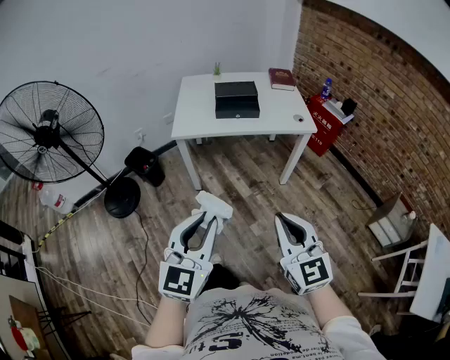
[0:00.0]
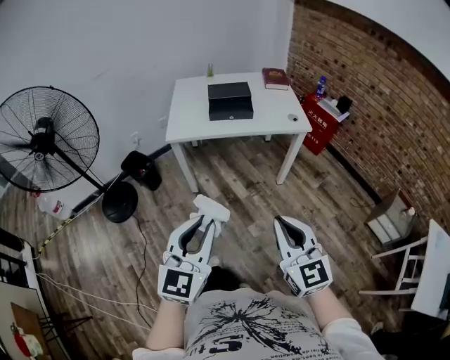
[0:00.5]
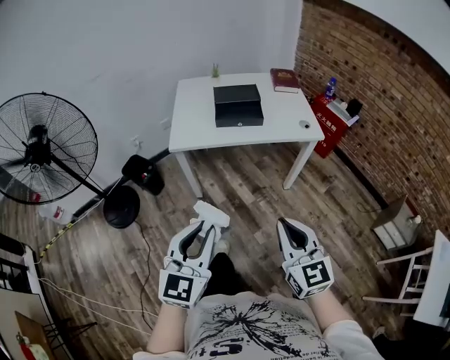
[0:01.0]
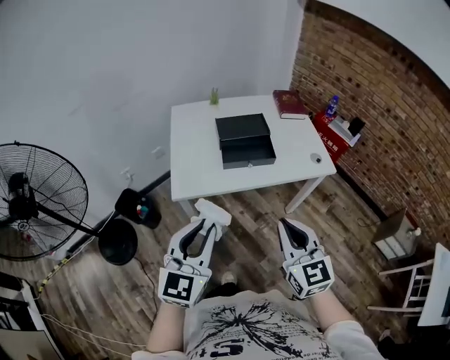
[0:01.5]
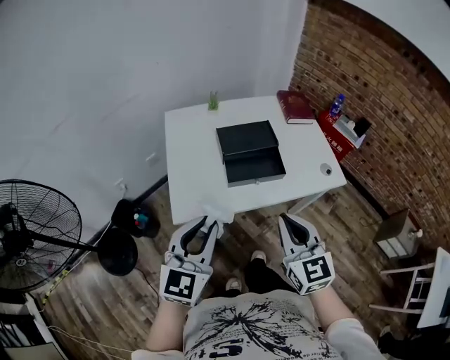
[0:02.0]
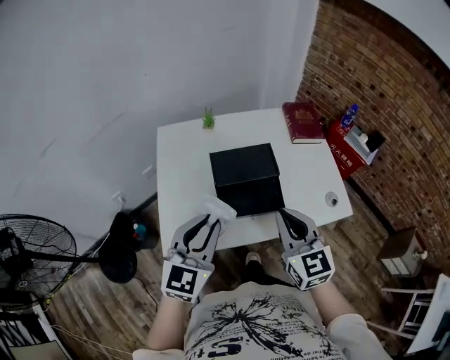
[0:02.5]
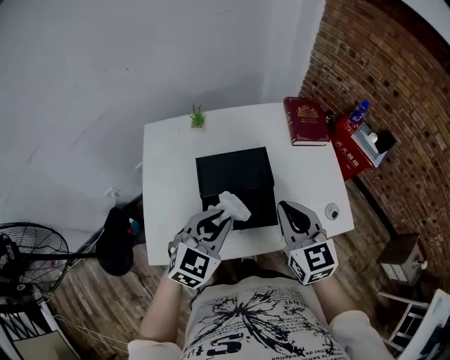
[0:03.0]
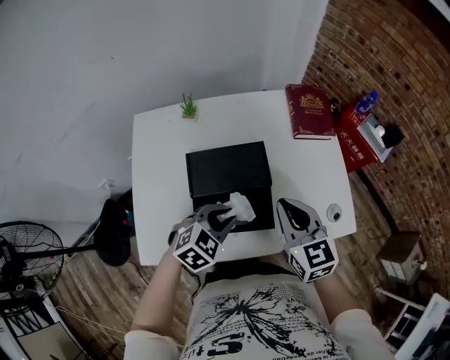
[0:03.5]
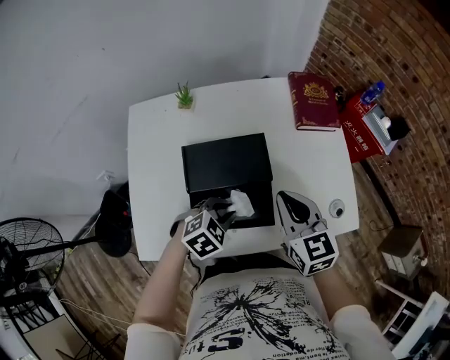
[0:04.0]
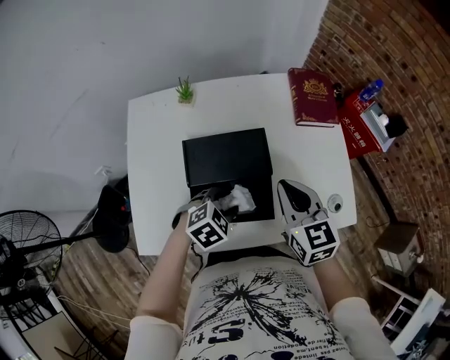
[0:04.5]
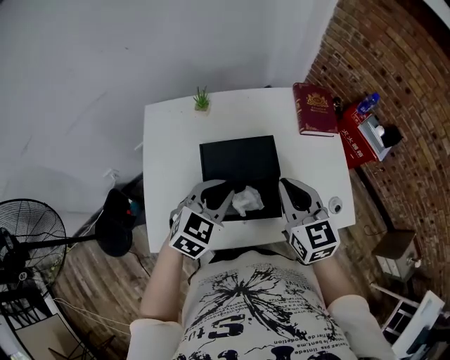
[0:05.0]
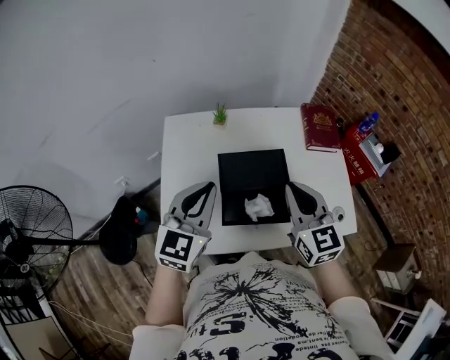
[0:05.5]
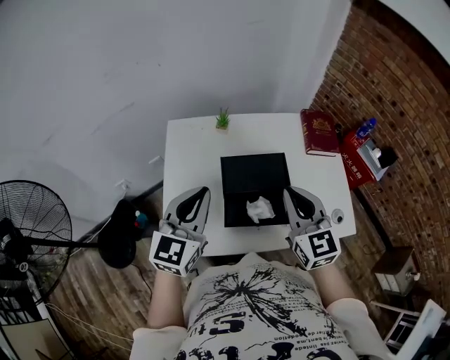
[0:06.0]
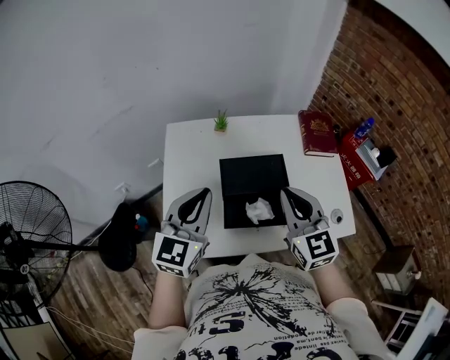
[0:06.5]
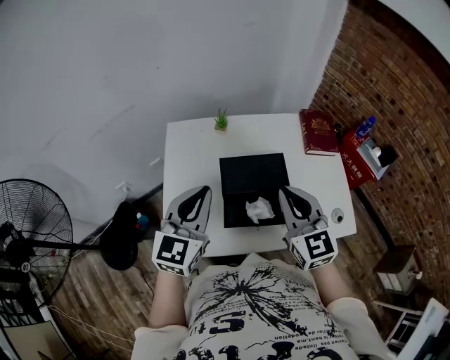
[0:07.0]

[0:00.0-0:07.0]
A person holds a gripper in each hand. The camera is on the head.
0:00.0 to 0:02.0: Both grippers are carried forward, some 50 cm.
0:02.0 to 0:03.5: The left gripper travels forward, downward and to the right by about 40 cm, and tips its fingers downward by roughly 40 degrees. The right gripper goes approximately 35 cm forward.
0:03.5 to 0:05.0: The left gripper heads upward and to the left, covering some 10 cm, and opens and closes again. The right gripper shifts by about 5 cm.
0:05.0 to 0:07.0: The left gripper moves upward and to the left, roughly 20 cm, and changes its angle by approximately 30 degrees. The right gripper is displaced upward and to the left by approximately 10 cm.

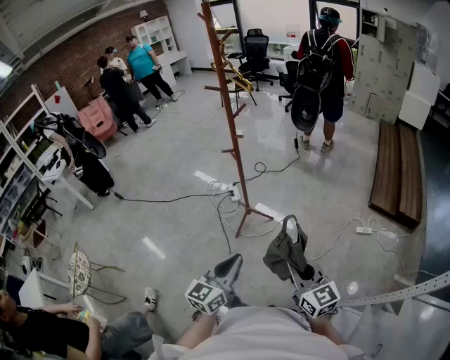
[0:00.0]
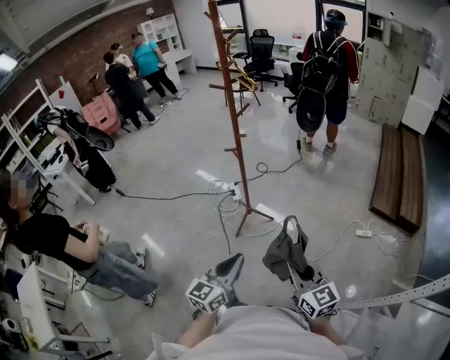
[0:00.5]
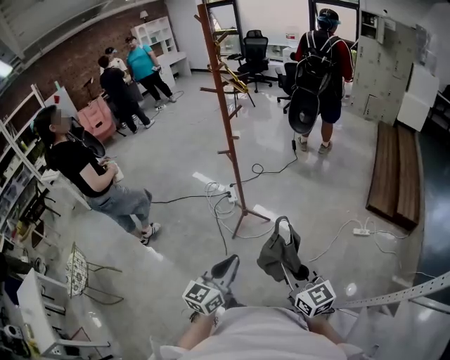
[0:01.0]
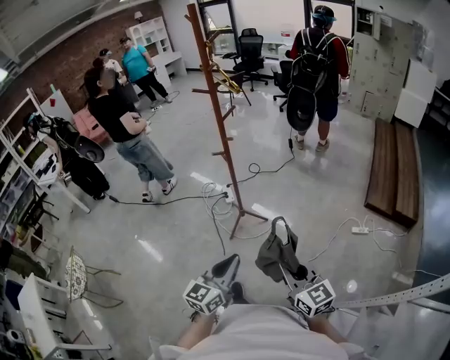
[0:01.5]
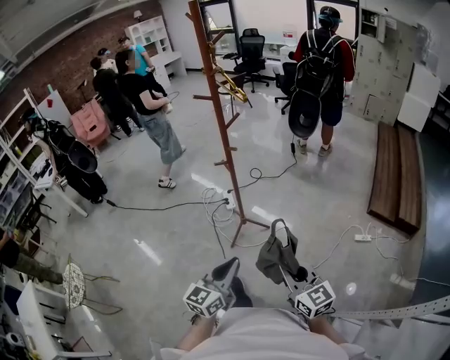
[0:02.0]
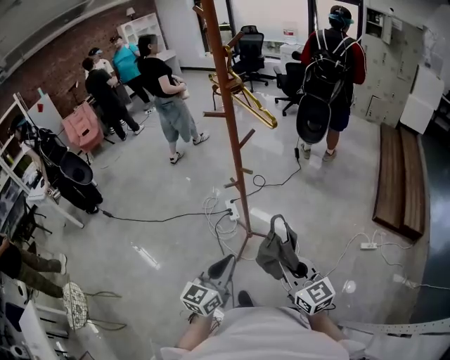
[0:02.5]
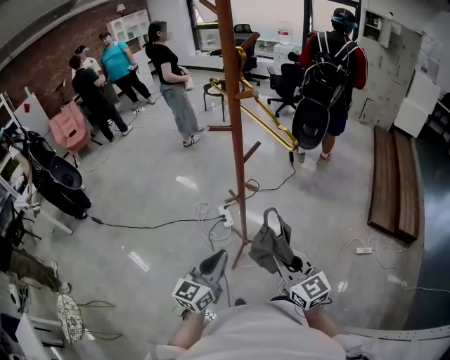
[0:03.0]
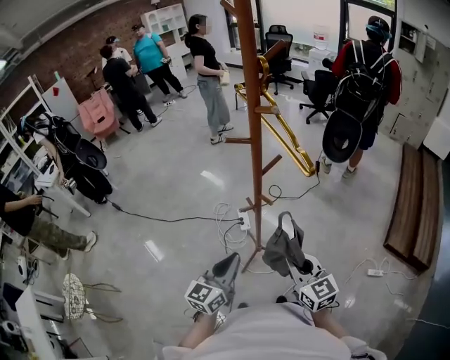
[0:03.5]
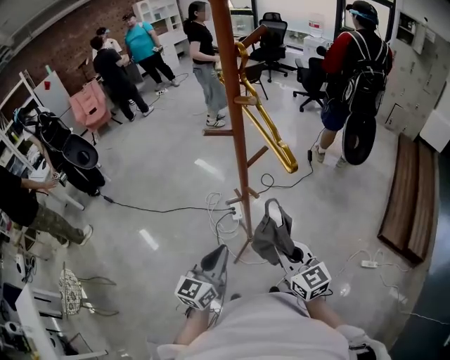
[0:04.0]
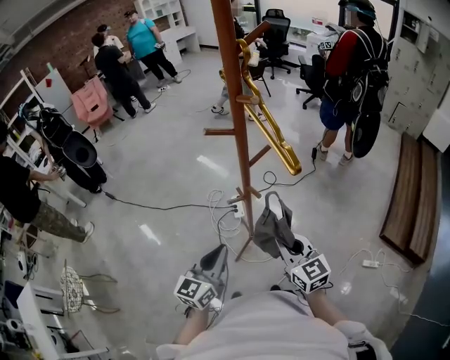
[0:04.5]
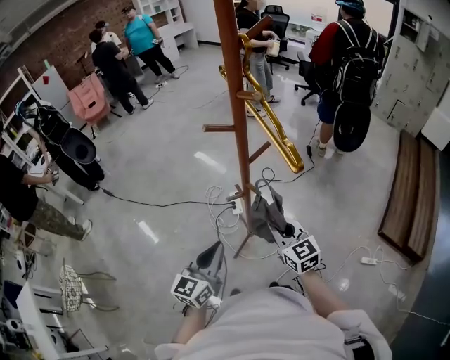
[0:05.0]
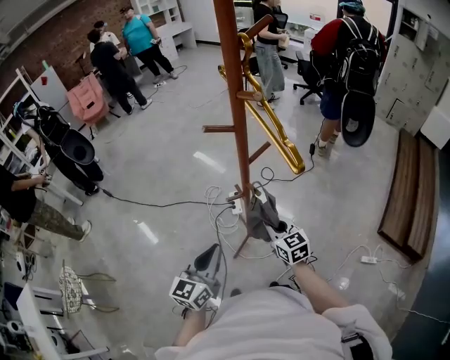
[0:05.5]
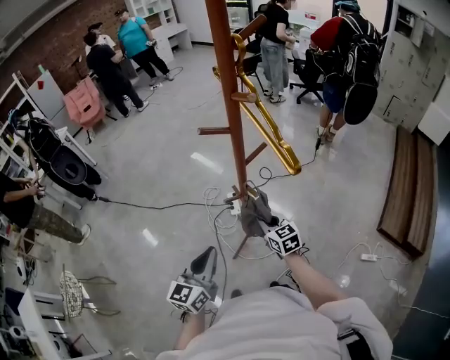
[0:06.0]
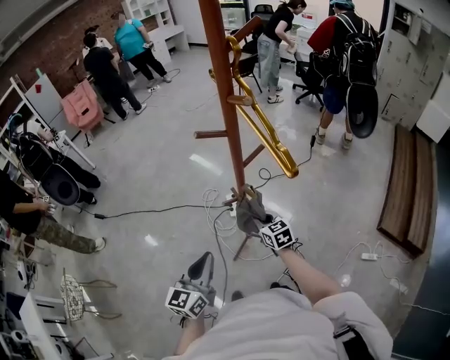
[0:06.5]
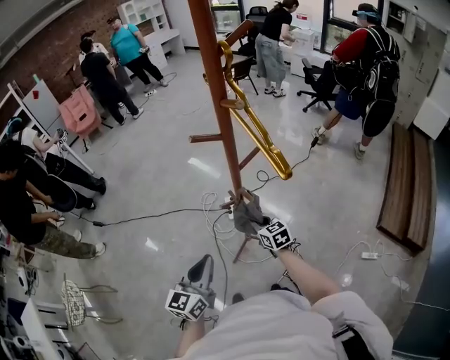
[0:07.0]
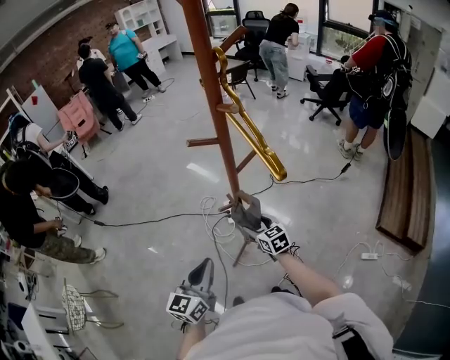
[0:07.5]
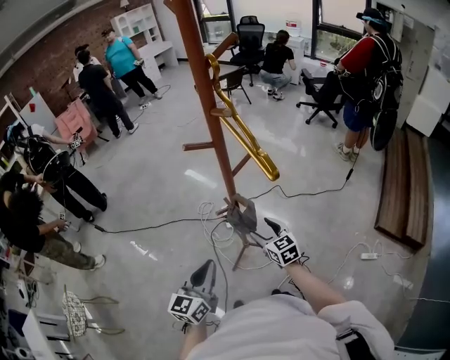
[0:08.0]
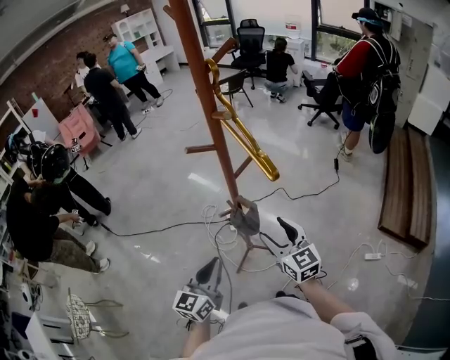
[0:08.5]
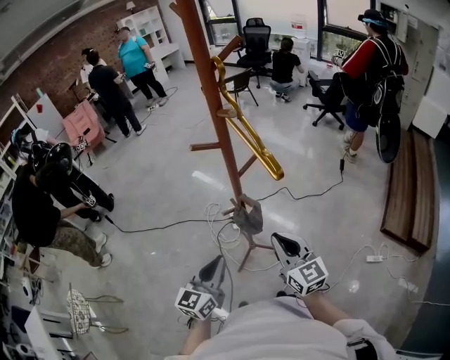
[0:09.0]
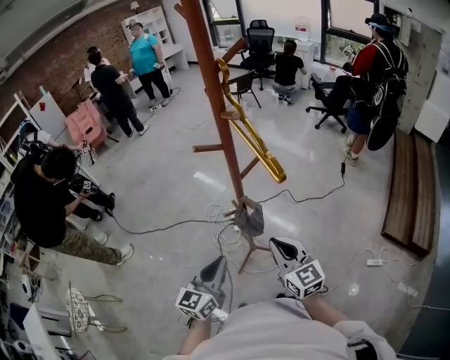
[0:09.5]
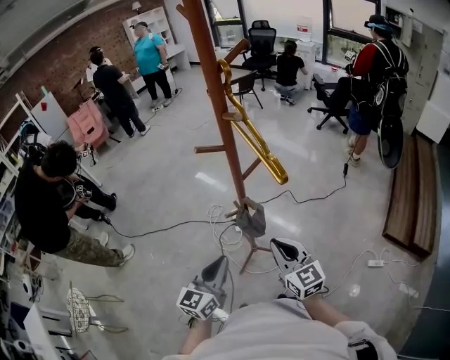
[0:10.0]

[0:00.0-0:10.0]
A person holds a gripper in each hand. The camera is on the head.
0:00.0 to 0:02.0: Both grippers travel together forward, some 10 cm.
0:02.0 to 0:04.0: The grippers both shift forward by some 35 cm.
0:04.0 to 0:06.0: The right gripper is displaced forward and downward by some 20 cm.
0:06.0 to 0:08.0: The right gripper opens up.
0:08.0 to 0:10.0: The right gripper shifts approximately 15 cm upward and backward, and closes.

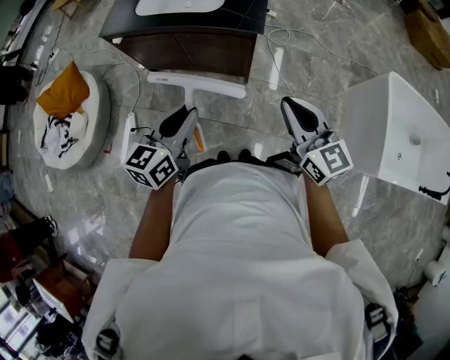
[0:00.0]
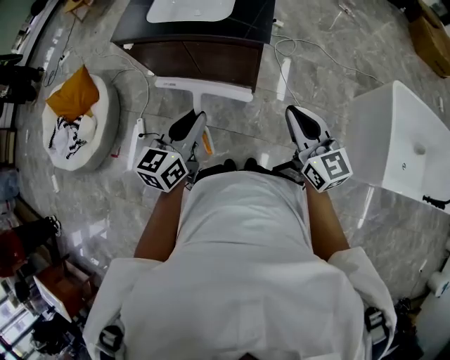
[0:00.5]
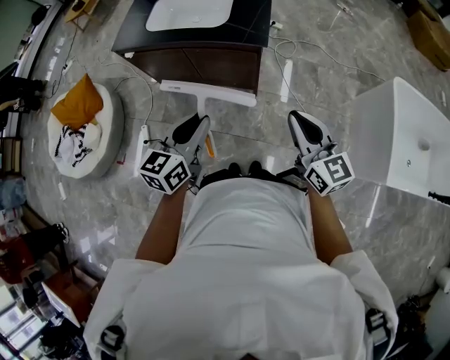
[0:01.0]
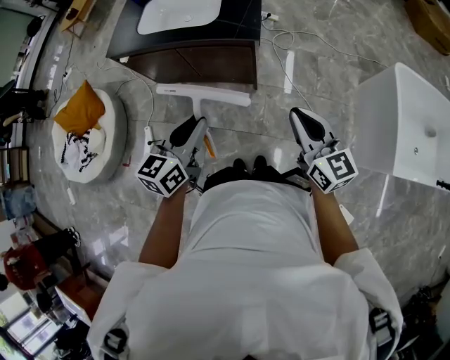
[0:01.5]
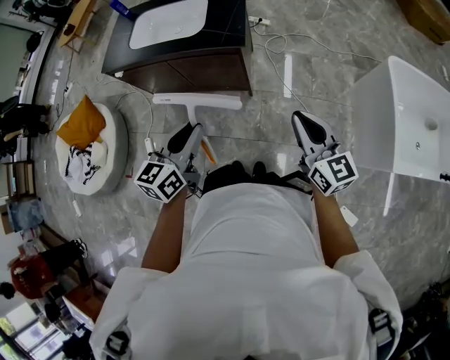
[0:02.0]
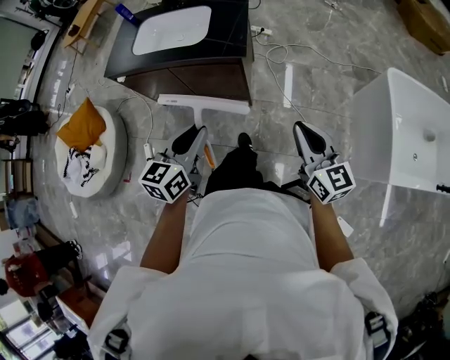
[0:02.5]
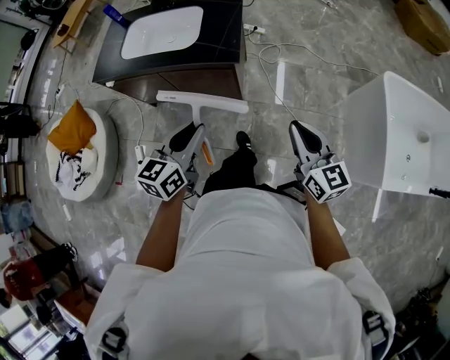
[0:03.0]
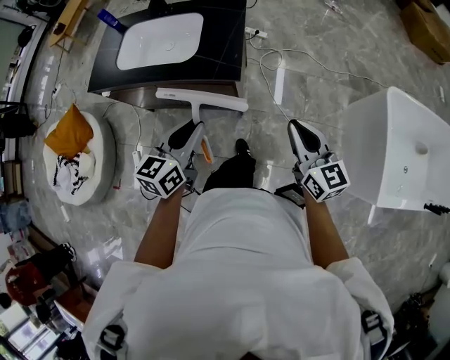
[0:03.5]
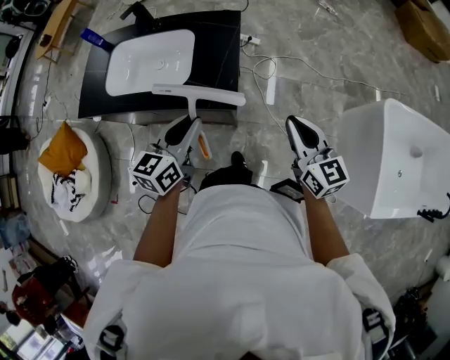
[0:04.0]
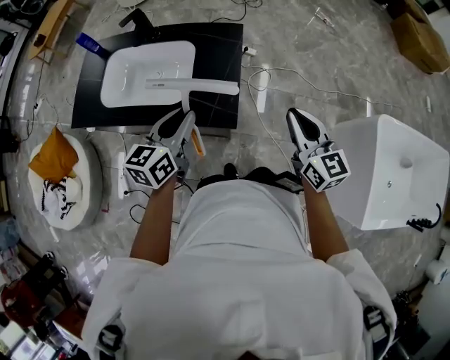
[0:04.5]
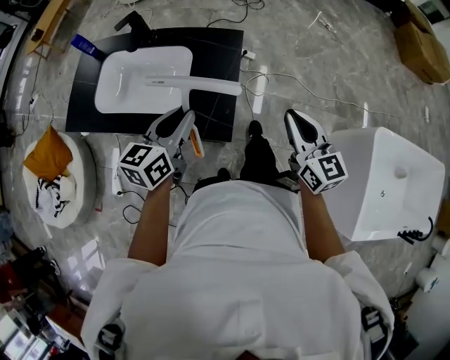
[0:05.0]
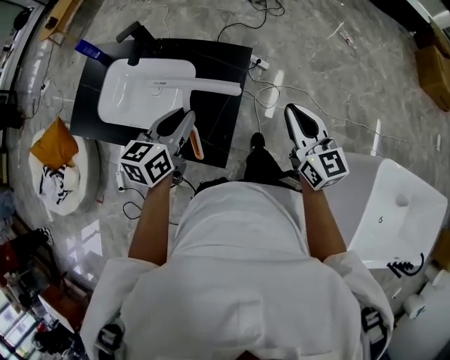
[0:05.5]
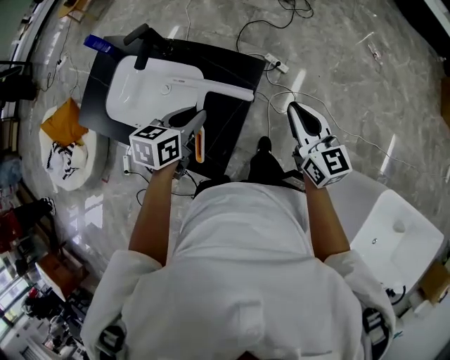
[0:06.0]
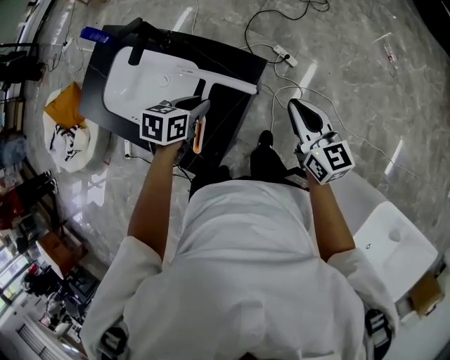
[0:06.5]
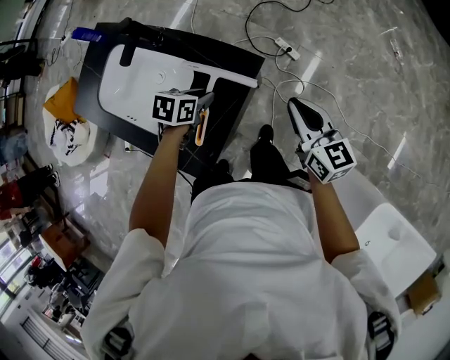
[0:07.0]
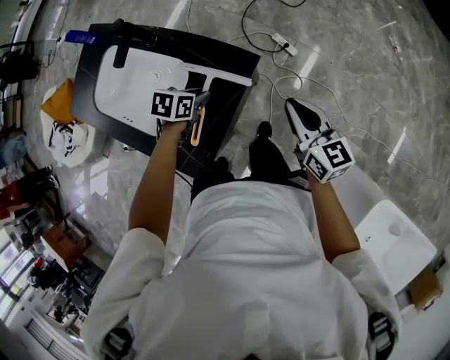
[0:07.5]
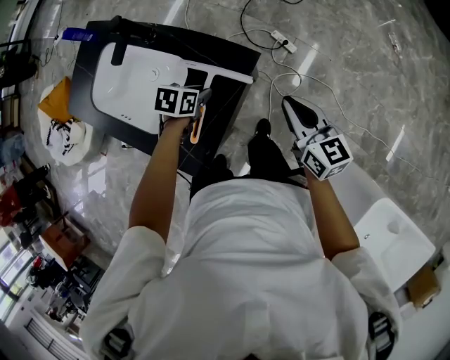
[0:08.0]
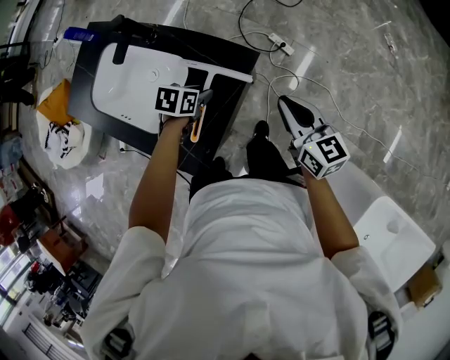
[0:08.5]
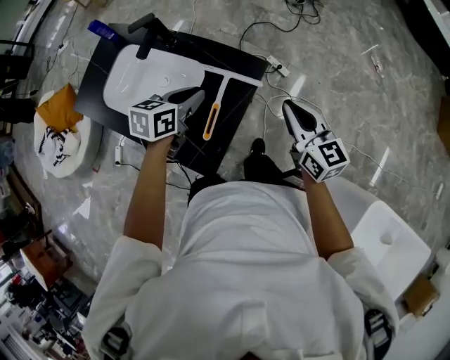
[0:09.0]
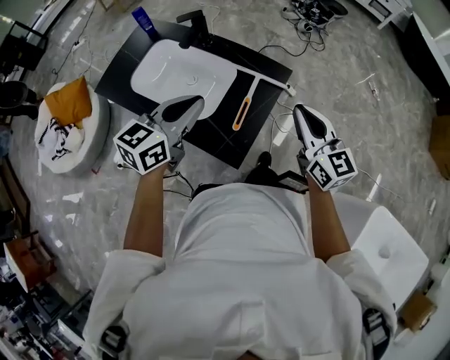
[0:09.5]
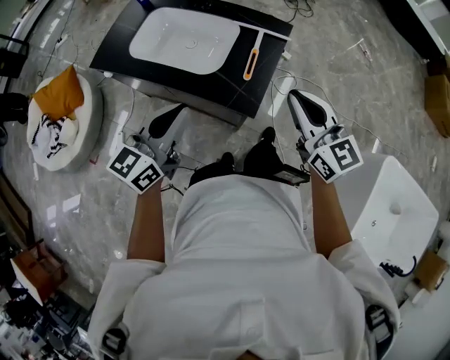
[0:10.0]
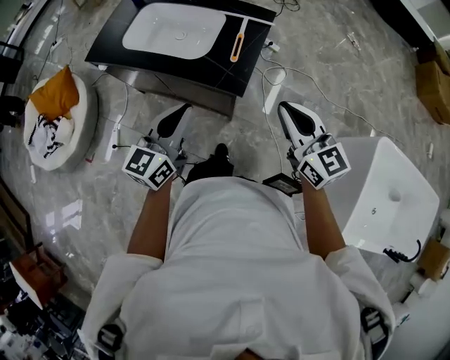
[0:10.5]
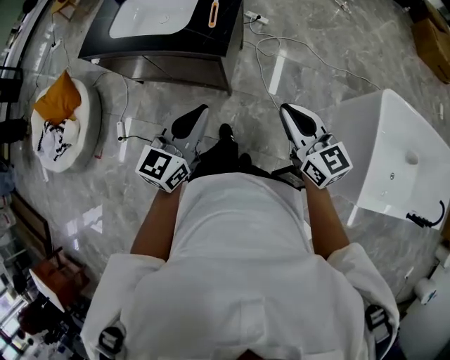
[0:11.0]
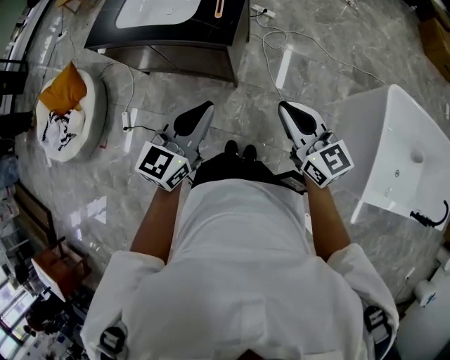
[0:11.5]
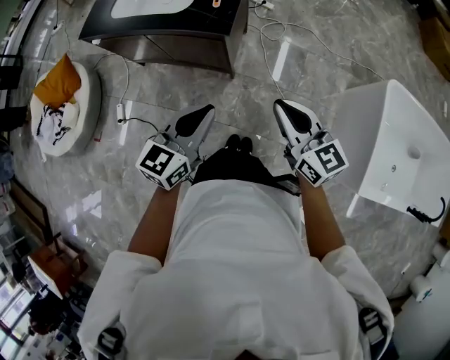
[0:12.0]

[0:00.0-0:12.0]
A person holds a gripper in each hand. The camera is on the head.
0:00.0 to 0:02.0: Both grippers travel together to the right, approximately 10 cm.
0:02.0 to 0:04.0: Both grippers move forward, approximately 30 cm.
0:04.0 to 0:06.0: The grippers both shift forward by approximately 35 cm. The left gripper swivels about 30 degrees.
0:06.0 to 0:08.0: The left gripper goes about 20 cm downward and forward, and changes its angle by roughly 20 degrees. The right gripper goes some 10 cm downward and forward.
0:08.0 to 0:10.0: The left gripper moves backward, upward and to the left, some 50 cm, and points its fingers approximately 60 degrees further upward; the right gripper heads backward, to the left and upward, covering some 40 cm, and changes its angle by some 20 degrees.
0:10.0 to 0:12.0: The right gripper heads backward, covering roughly 30 cm. Meanwhile the left gripper is displaced backward and to the right by some 30 cm.
